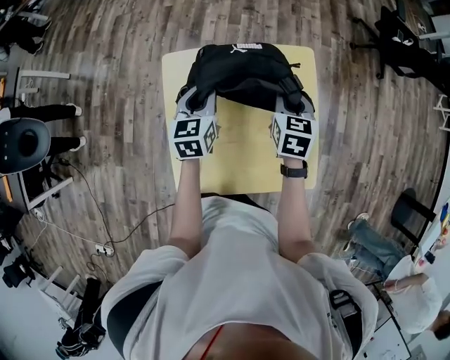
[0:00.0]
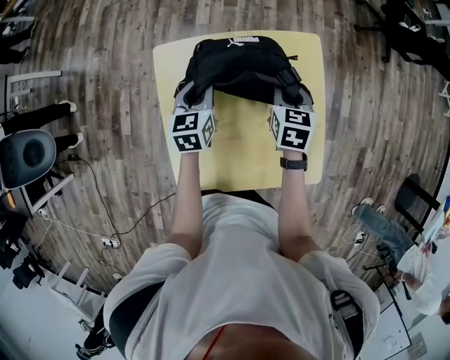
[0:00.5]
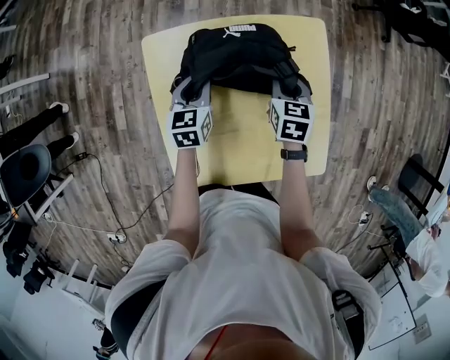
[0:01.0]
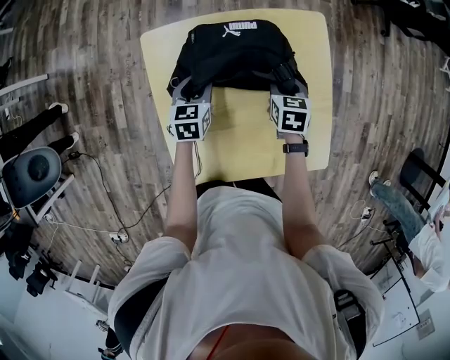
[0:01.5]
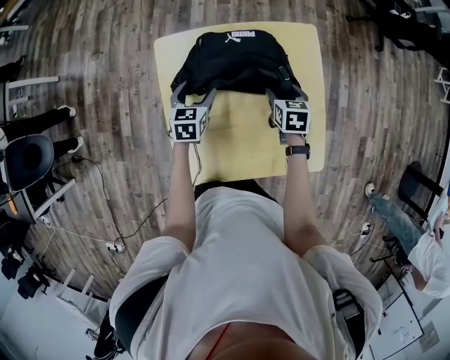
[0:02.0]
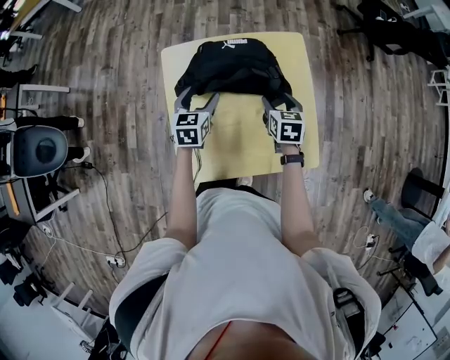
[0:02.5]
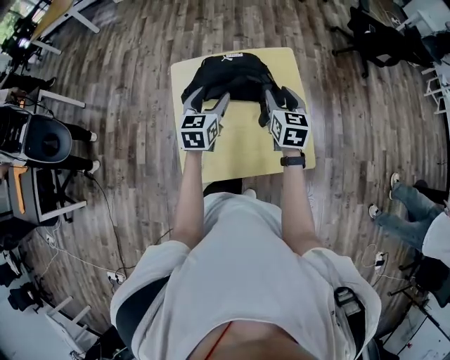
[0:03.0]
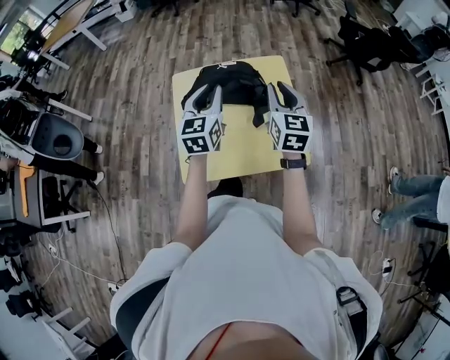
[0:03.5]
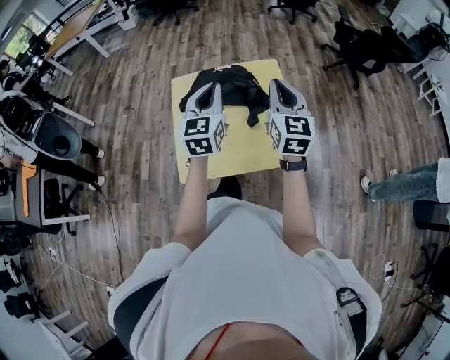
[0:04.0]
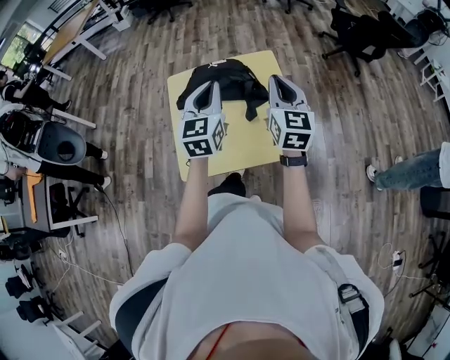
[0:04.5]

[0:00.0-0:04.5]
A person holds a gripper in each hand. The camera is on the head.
0:00.0 to 0:02.0: The two grippers go roughly 15 cm downward. The left gripper opens, while the right gripper opens up.
0:02.0 to 0:04.5: The right gripper goes roughly 40 cm upward and backward, points its fingers approximately 50 degrees further upward, and closes. Meanwhile the left gripper is displaced upward, to the right and backward by approximately 40 cm, tilts its fingers roughly 30 degrees upward, and closes.

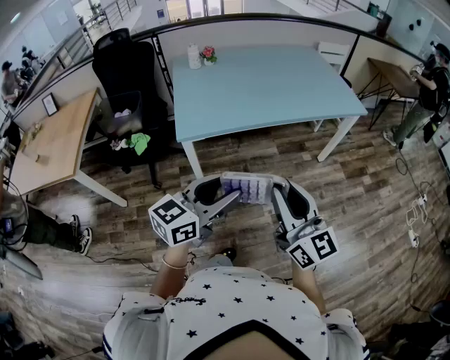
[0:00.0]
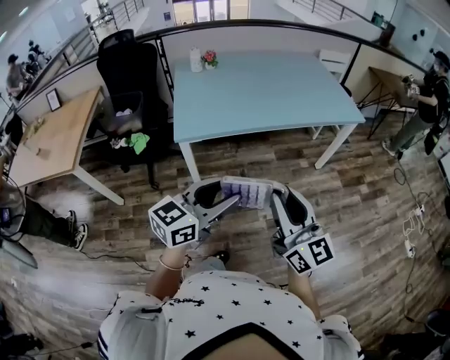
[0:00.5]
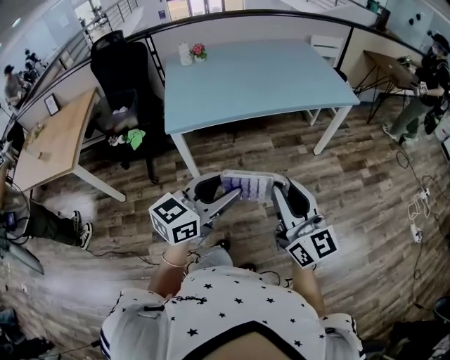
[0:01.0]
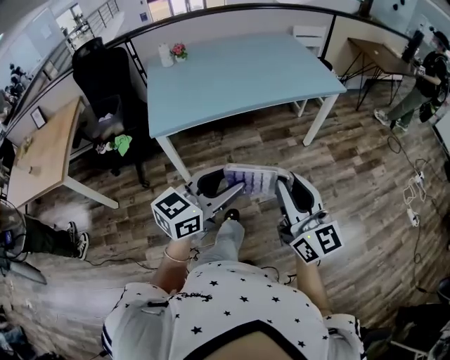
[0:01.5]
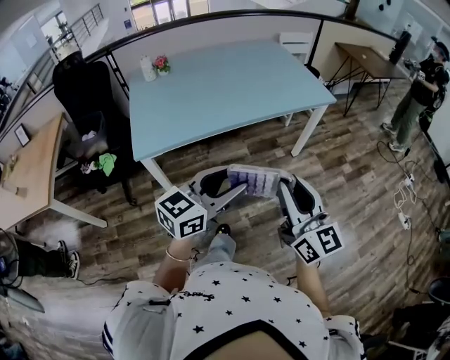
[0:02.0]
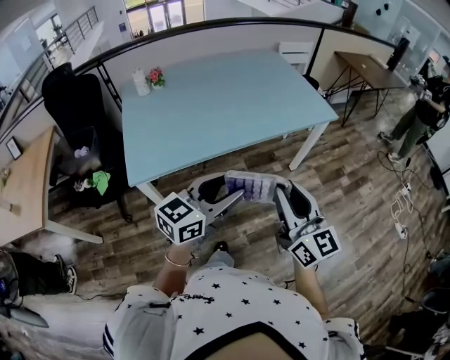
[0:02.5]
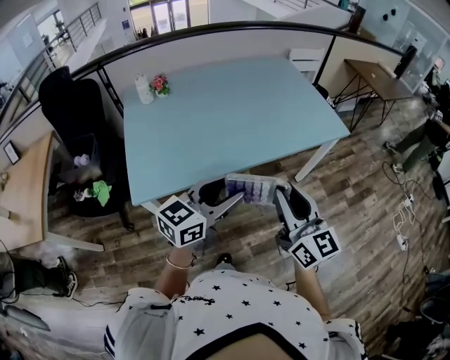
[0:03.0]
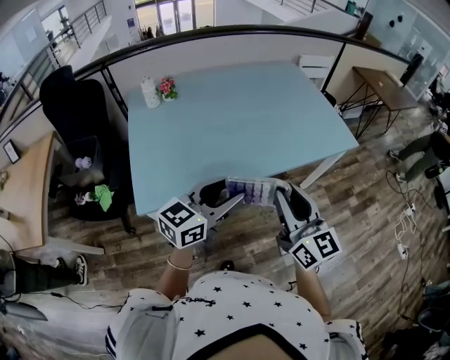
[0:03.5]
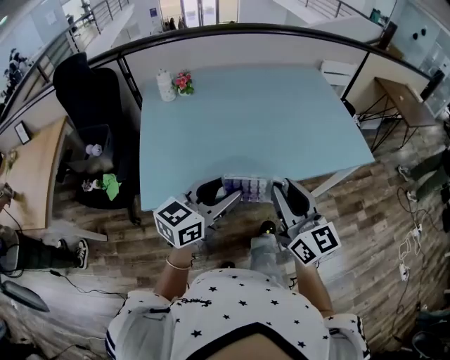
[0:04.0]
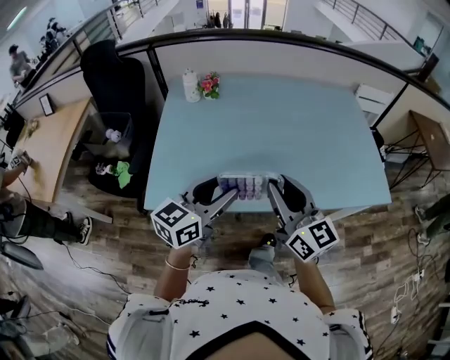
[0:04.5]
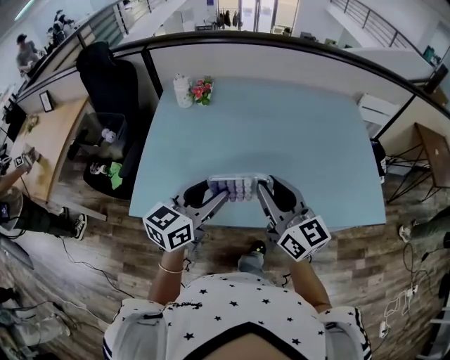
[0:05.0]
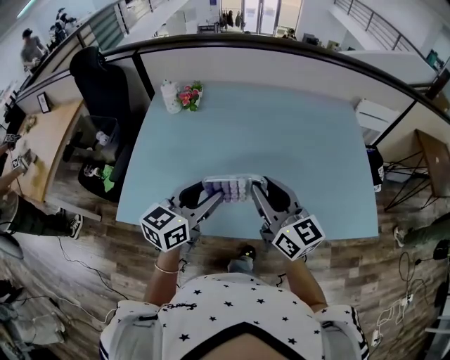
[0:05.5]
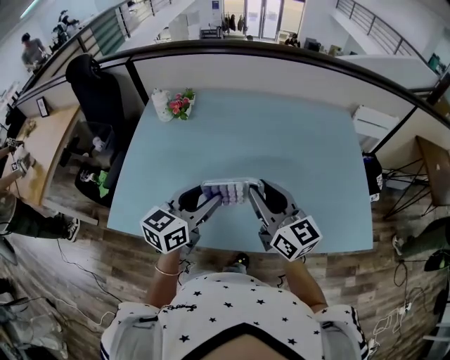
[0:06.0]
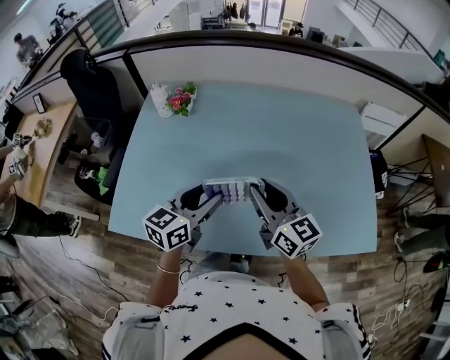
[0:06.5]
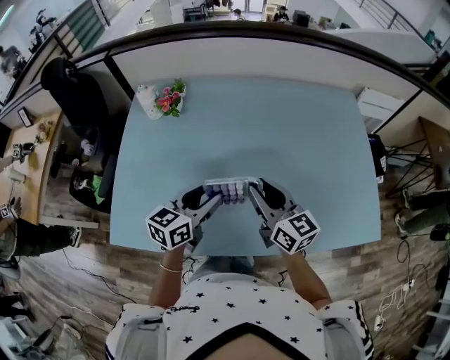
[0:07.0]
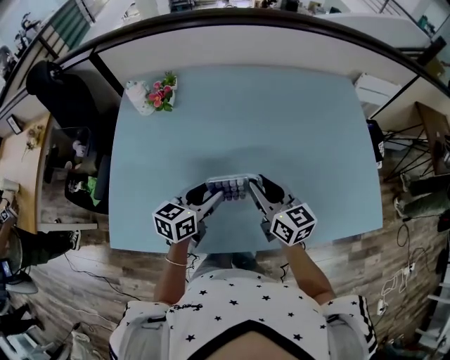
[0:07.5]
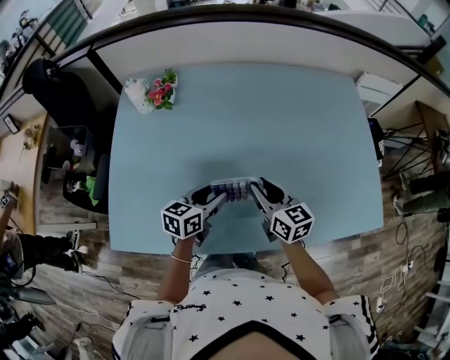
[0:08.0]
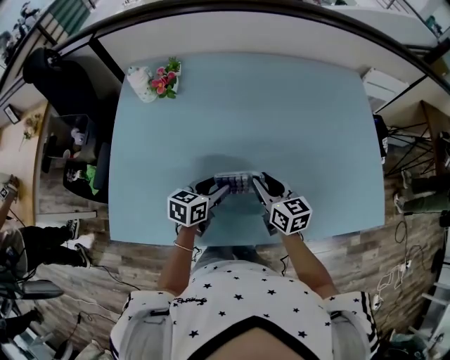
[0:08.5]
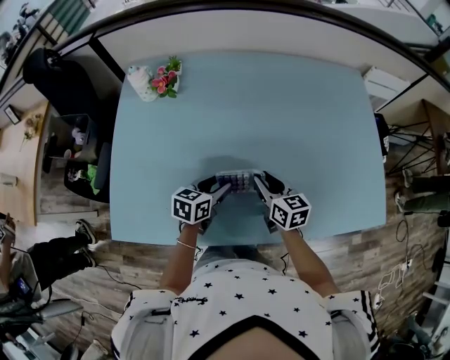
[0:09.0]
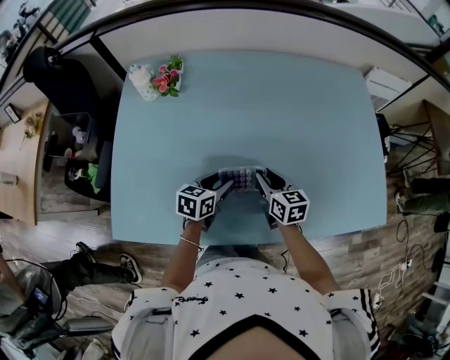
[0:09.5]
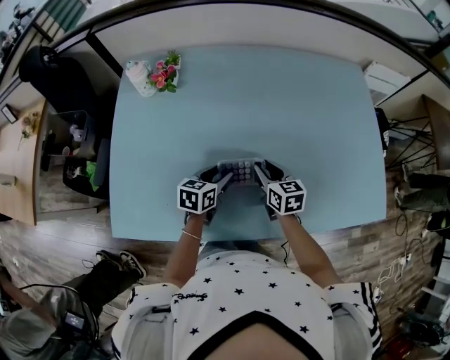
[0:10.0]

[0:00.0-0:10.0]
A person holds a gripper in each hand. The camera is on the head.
0:00.0 to 0:02.0: The two grippers go roughly 15 cm to the right and forward.
0:02.0 to 0:04.0: The two grippers go about 30 cm forward and to the left.
0:04.0 to 0:06.0: The right gripper travels forward by about 25 cm, and turns by about 30 degrees. The left gripper heads forward and to the right, covering some 25 cm, and swivels roughly 30 degrees.
0:06.0 to 0:08.0: The grippers both shift downward and forward by about 20 cm. The left gripper changes its angle by approximately 20 degrees. Meanwhile the right gripper rotates about 30 degrees.
0:08.0 to 0:10.0: Both grippers move downward, about 5 cm.

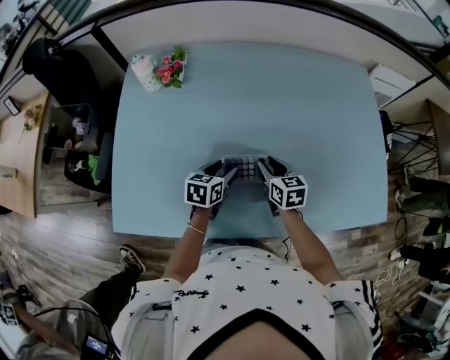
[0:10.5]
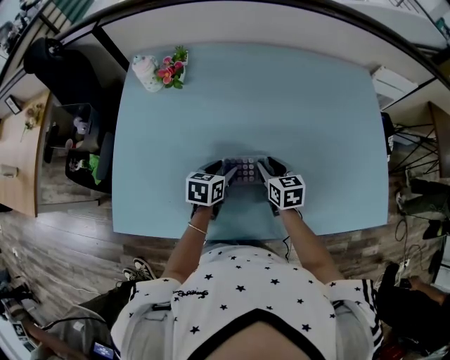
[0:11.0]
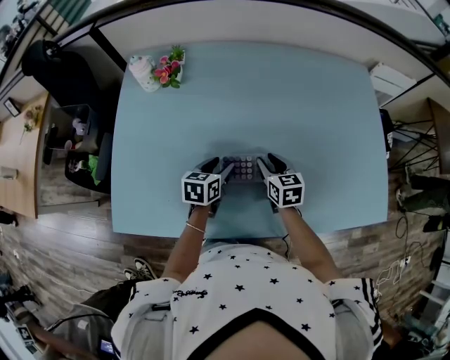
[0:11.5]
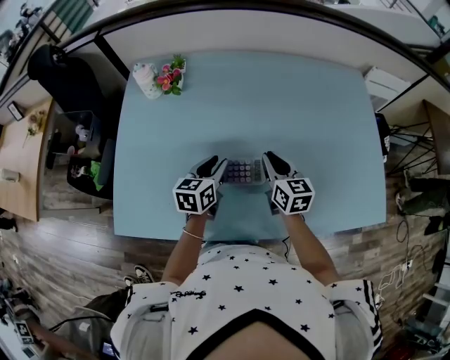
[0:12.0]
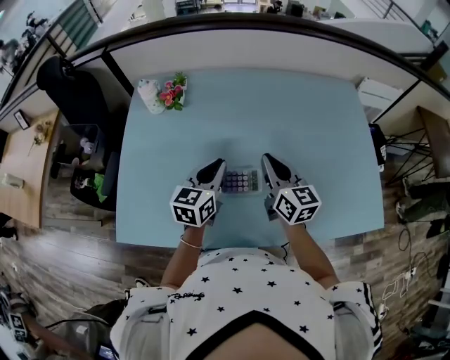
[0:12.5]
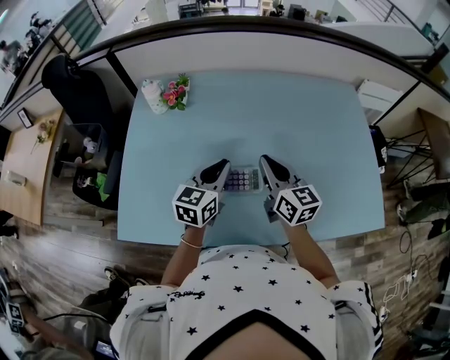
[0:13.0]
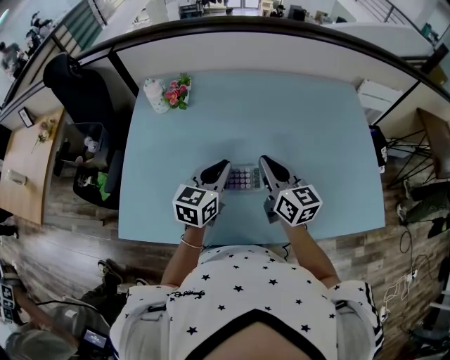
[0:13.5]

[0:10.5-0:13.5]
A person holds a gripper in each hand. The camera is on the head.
0:10.5 to 0:12.0: The grippers both shift upward by approximately 5 cm. The right gripper closes.
0:12.0 to 0:13.5: The two grippers go approximately 10 cm upward. The left gripper closes.

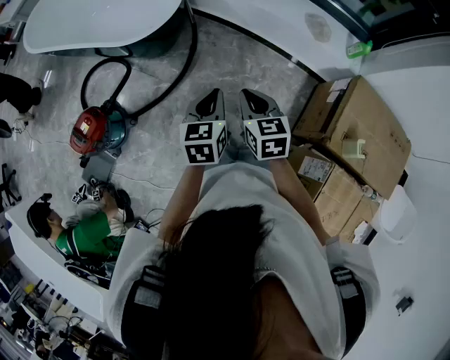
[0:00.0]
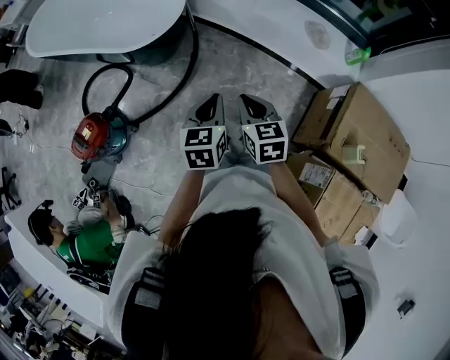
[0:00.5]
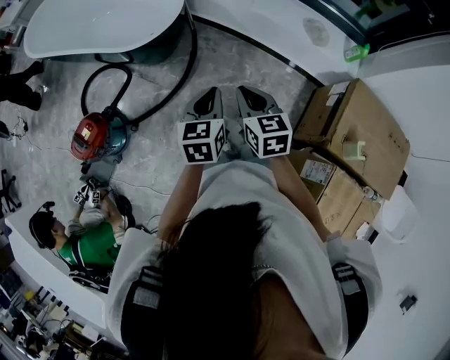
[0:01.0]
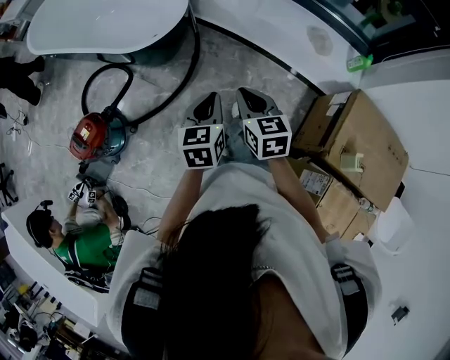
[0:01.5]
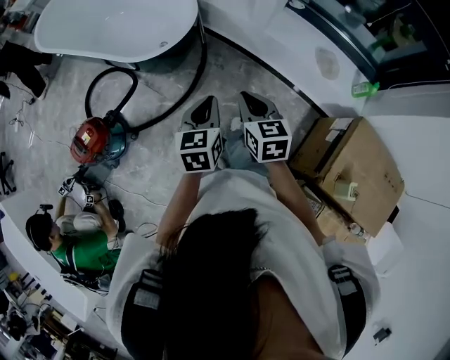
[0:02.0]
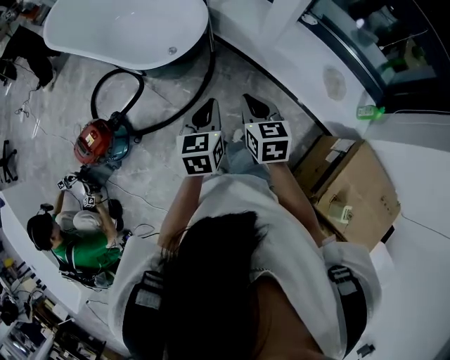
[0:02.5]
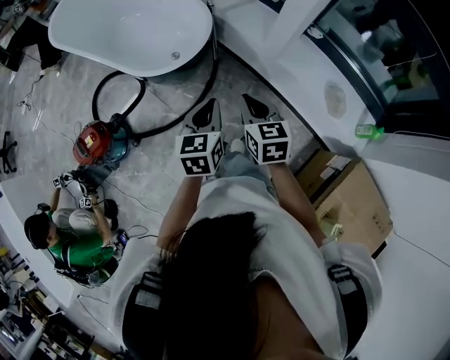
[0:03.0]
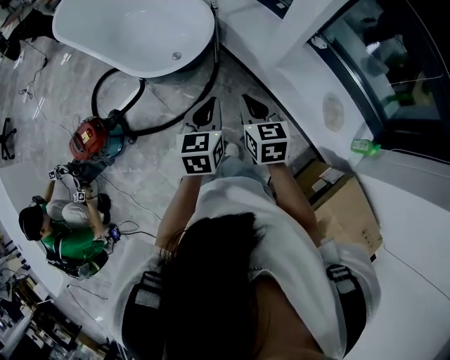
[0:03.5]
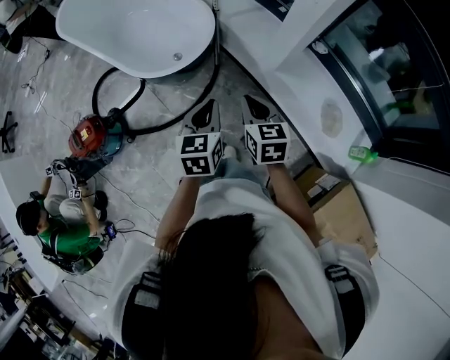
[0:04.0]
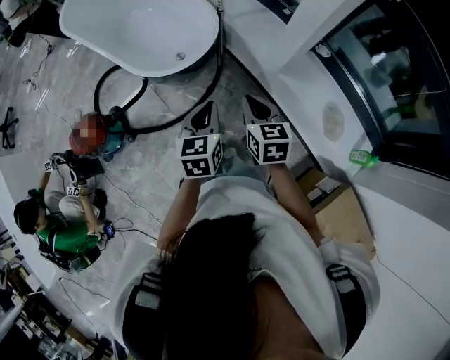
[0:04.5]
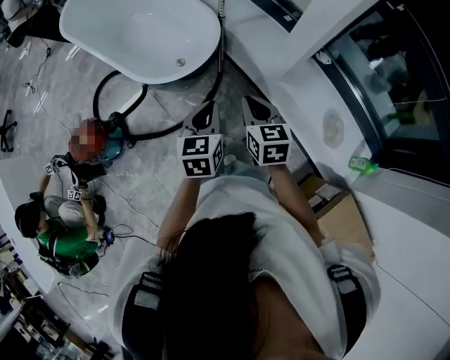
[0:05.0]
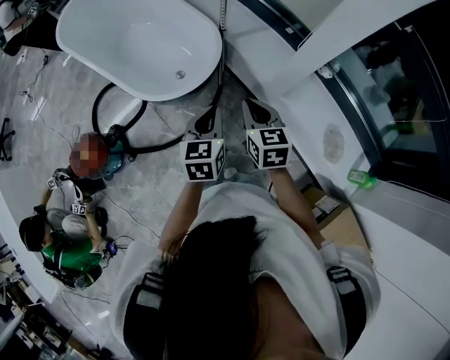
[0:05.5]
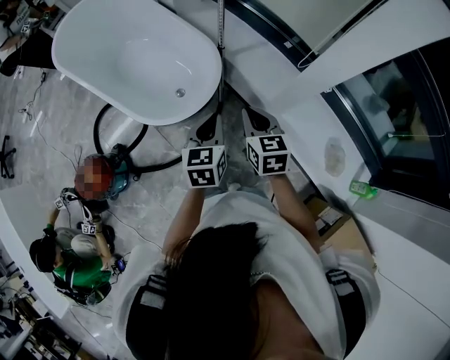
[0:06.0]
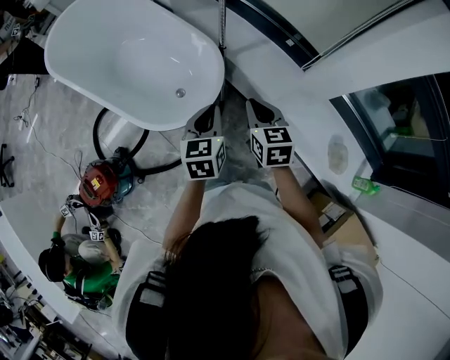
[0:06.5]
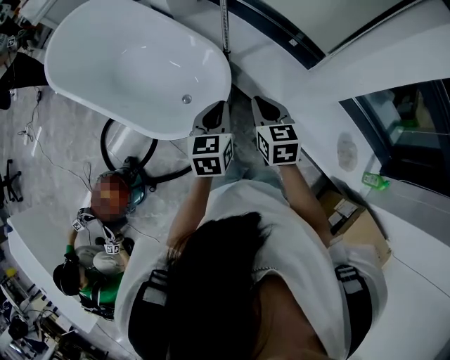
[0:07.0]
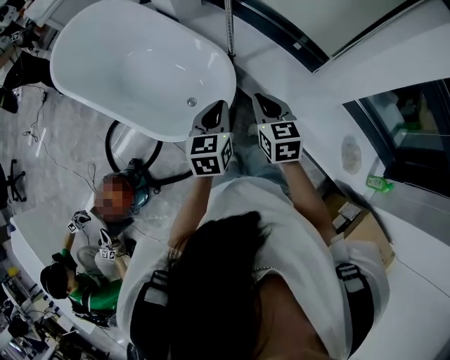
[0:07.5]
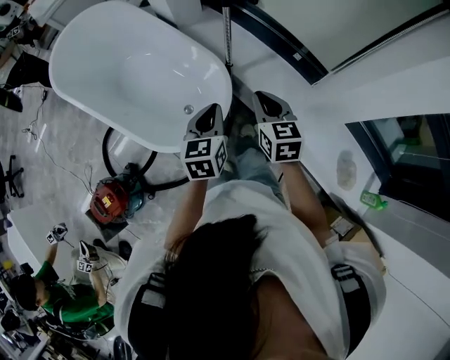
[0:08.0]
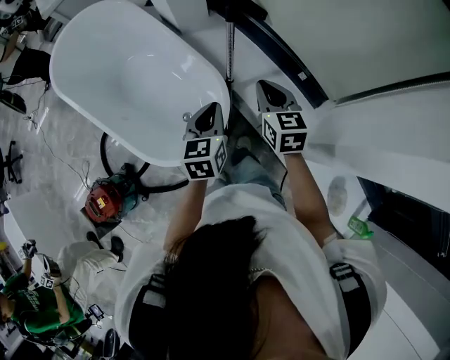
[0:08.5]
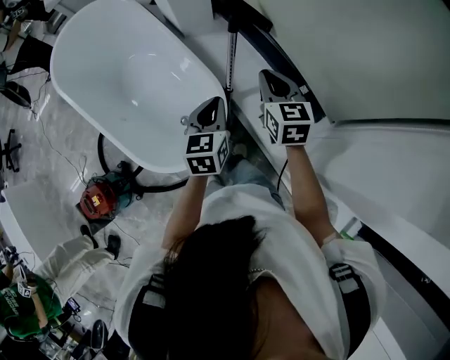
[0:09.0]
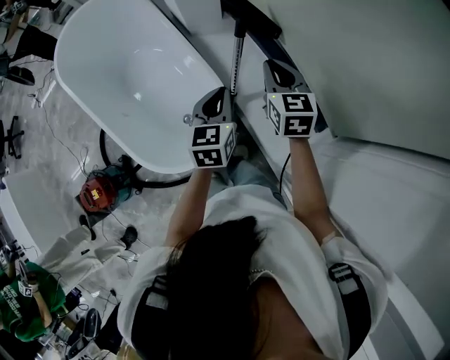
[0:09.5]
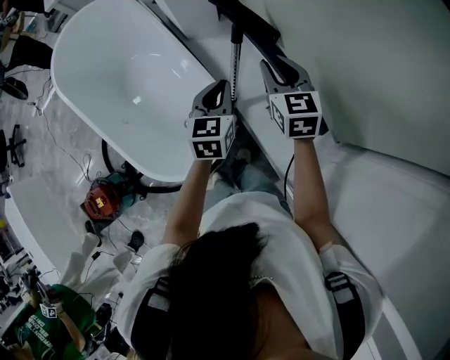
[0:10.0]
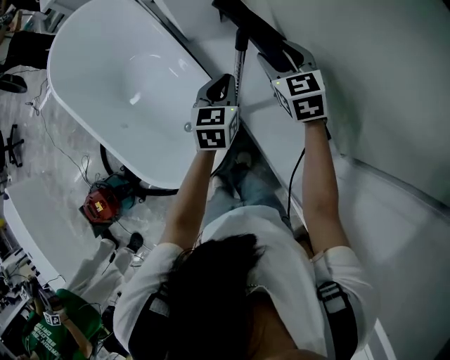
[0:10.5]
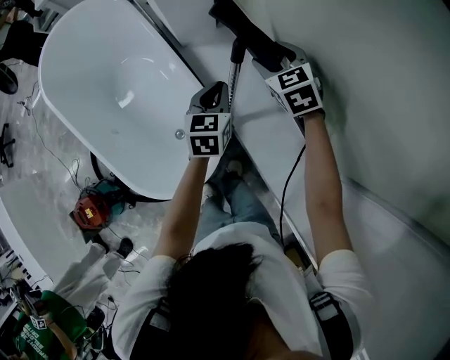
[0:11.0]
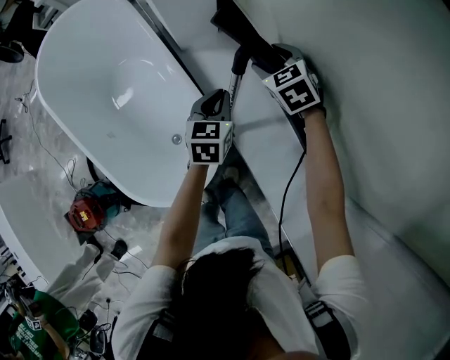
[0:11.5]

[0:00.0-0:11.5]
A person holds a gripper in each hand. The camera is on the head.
0:00.0 to 0:02.0: The grippers both shift forward by some 10 cm.
0:02.0 to 0:04.0: Both grippers move forward and to the right, some 20 cm.
0:04.0 to 0:06.0: Both grippers travel together forward, some 20 cm.
0:06.0 to 0:07.5: The grippers both shift forward and to the left by roughly 10 cm.
0:07.5 to 0:09.5: Both grippers move forward, about 30 cm.
0:09.5 to 0:11.5: Both grippers move forward and downward, about 20 cm. The right gripper swivels approximately 40 degrees, and opens.
